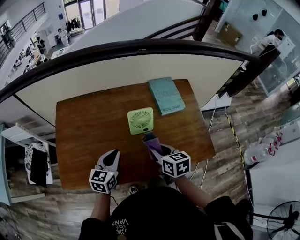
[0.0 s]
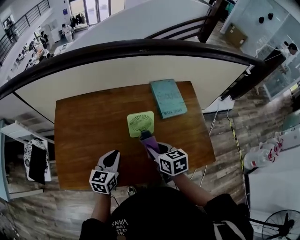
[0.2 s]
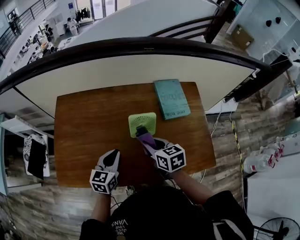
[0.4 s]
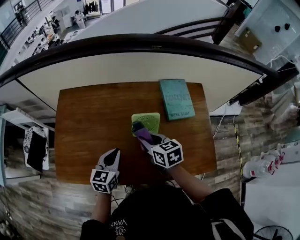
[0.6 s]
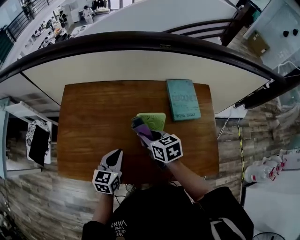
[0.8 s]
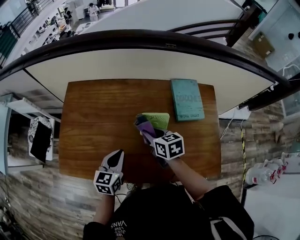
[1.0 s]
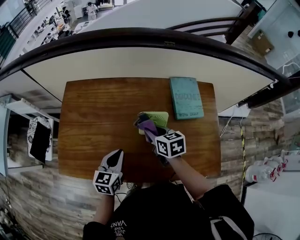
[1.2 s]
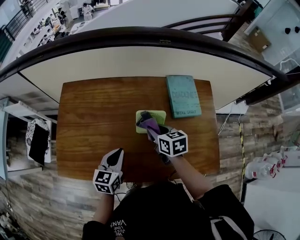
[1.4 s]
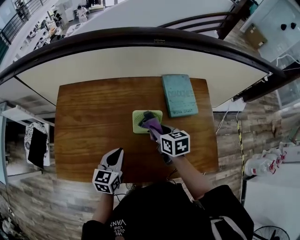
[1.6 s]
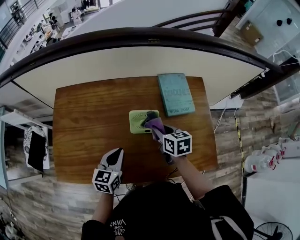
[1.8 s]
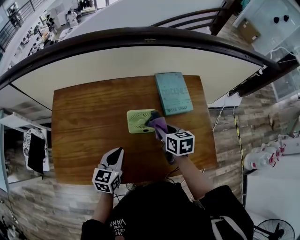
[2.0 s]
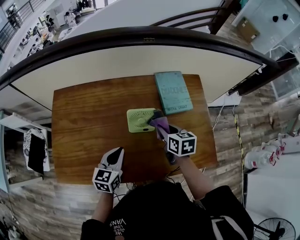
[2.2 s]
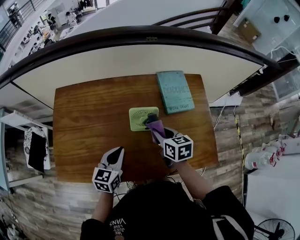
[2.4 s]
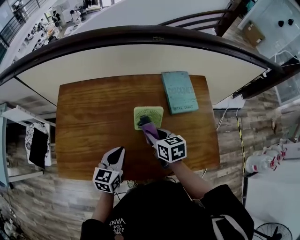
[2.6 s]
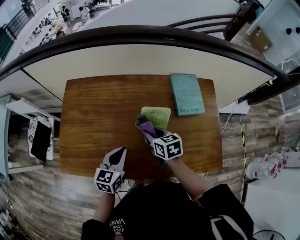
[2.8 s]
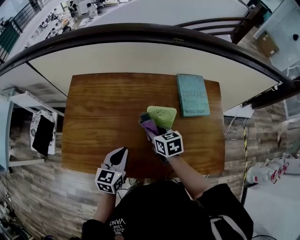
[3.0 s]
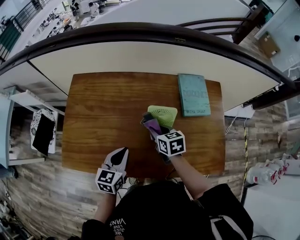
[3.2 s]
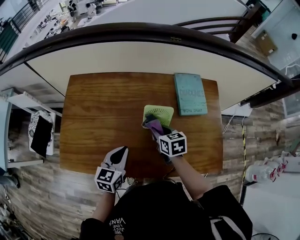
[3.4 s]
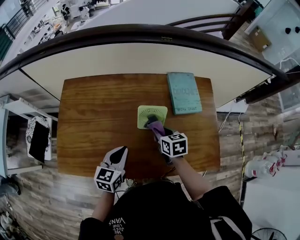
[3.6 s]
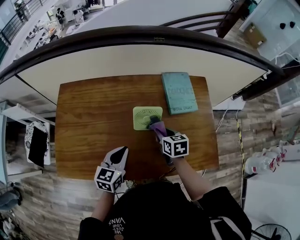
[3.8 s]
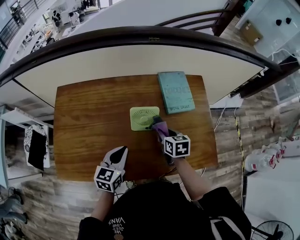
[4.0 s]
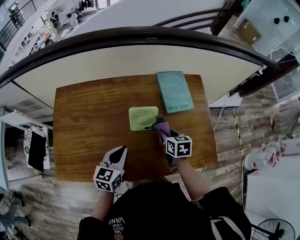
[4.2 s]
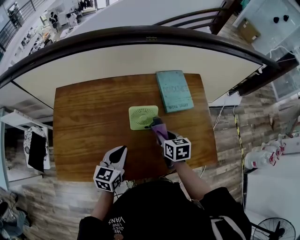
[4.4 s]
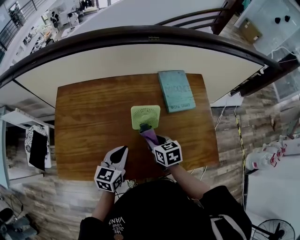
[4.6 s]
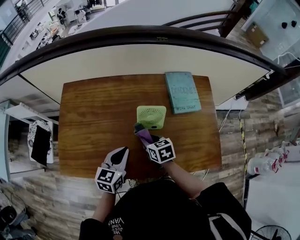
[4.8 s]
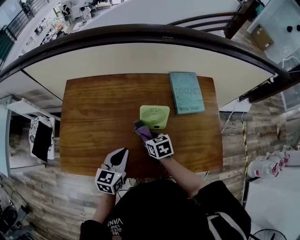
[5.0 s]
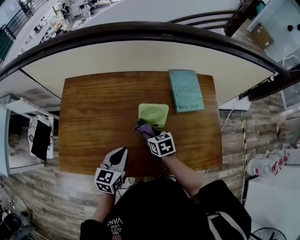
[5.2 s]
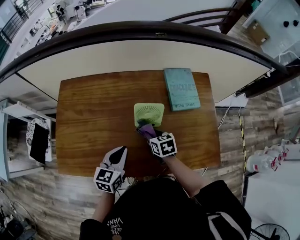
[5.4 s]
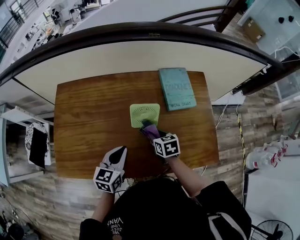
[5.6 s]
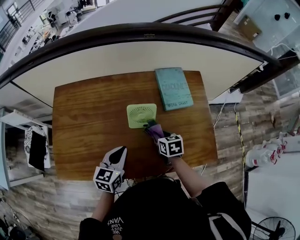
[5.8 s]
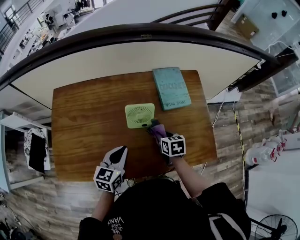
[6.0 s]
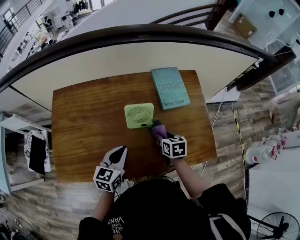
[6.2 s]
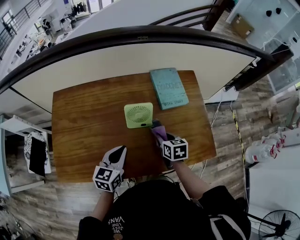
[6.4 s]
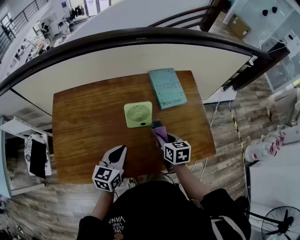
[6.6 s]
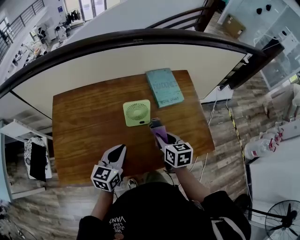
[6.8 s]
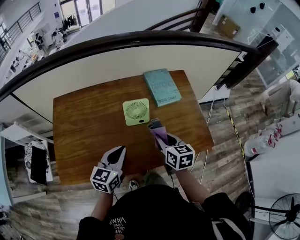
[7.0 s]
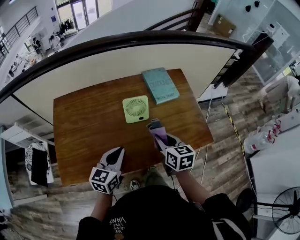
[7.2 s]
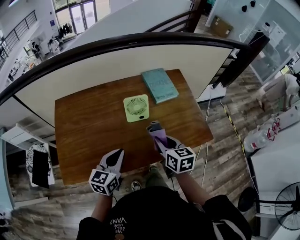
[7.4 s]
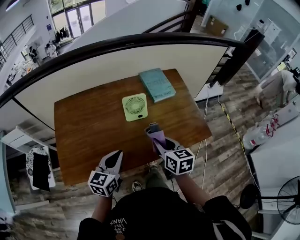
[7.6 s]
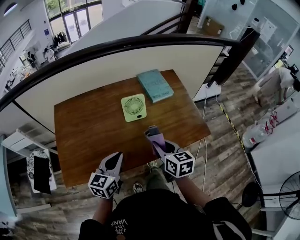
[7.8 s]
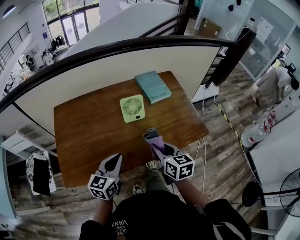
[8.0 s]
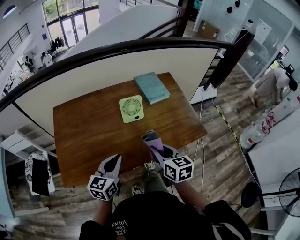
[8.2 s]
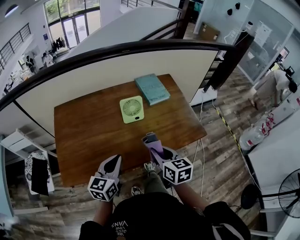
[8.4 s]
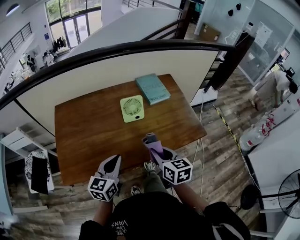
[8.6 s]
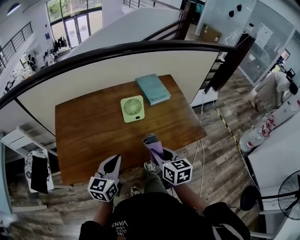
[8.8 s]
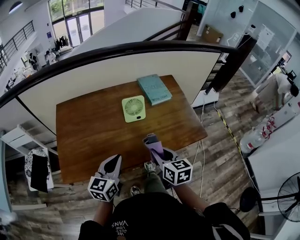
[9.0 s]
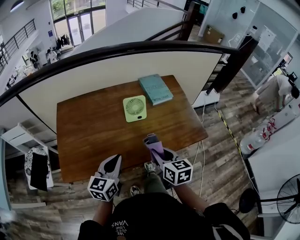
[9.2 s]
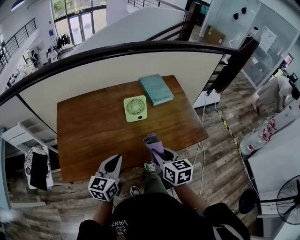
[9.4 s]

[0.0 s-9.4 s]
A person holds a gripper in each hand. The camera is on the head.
0.0 to 1.6 s: The right gripper heads forward, covering about 15 cm.
1.6 to 3.2 s: The right gripper goes approximately 5 cm to the left.
3.2 to 4.8 s: The right gripper moves roughly 15 cm to the right and comes back.
4.8 to 6.2 s: The right gripper is displaced to the right by some 15 cm.
6.2 to 7.8 s: The left gripper shifts approximately 15 cm backward and upward; the right gripper shifts about 20 cm backward and upward, and rotates some 20 degrees.
7.8 to 9.4 s: The grippers make only small movements.

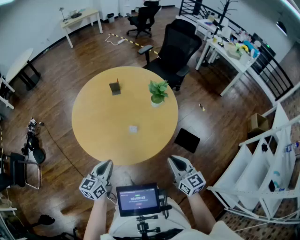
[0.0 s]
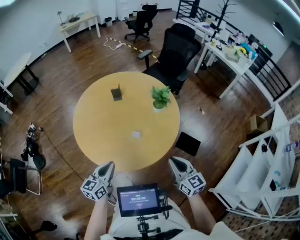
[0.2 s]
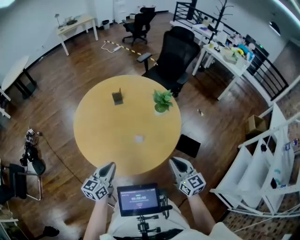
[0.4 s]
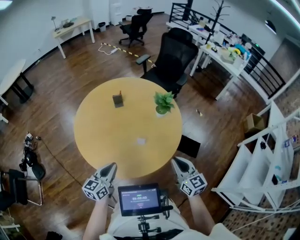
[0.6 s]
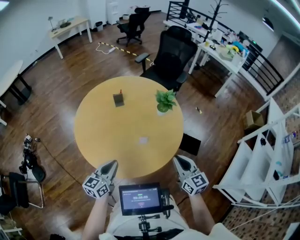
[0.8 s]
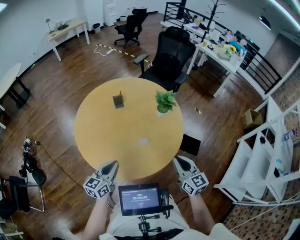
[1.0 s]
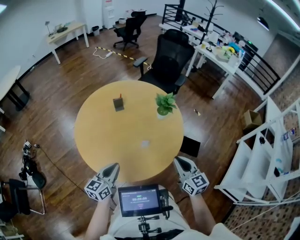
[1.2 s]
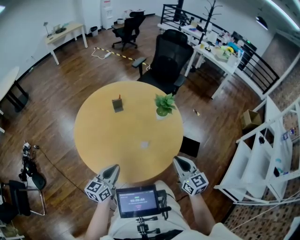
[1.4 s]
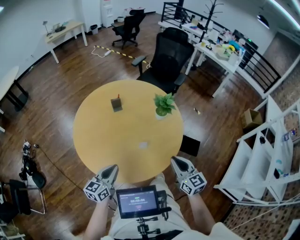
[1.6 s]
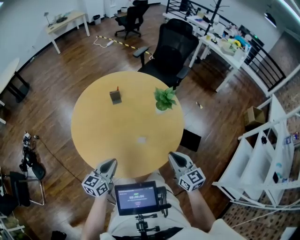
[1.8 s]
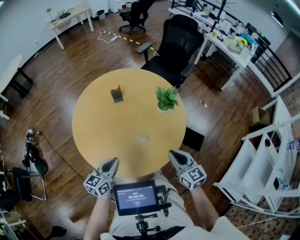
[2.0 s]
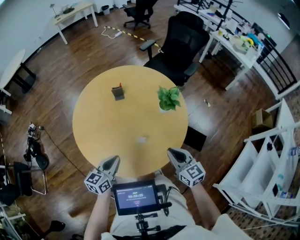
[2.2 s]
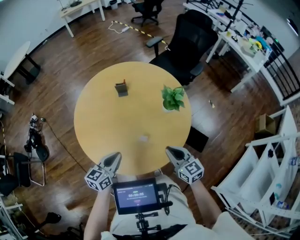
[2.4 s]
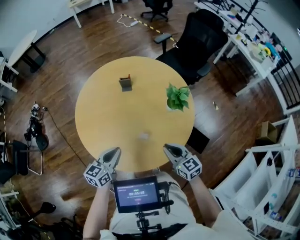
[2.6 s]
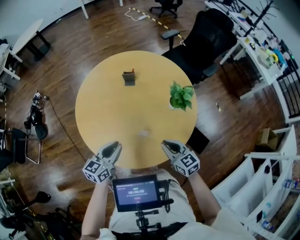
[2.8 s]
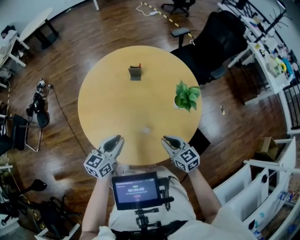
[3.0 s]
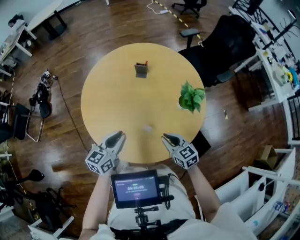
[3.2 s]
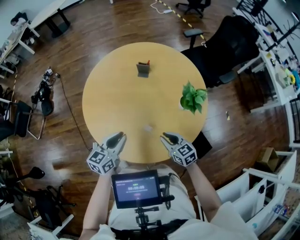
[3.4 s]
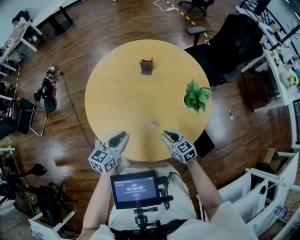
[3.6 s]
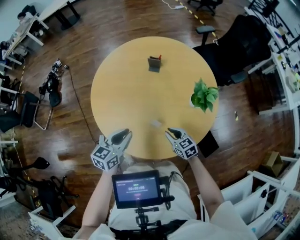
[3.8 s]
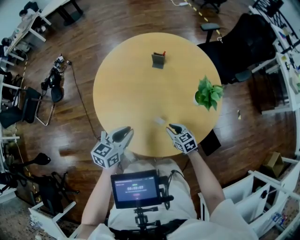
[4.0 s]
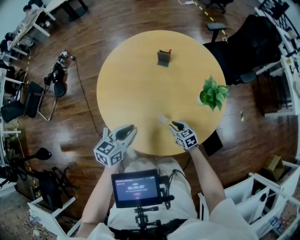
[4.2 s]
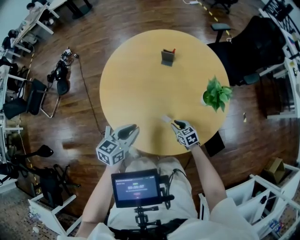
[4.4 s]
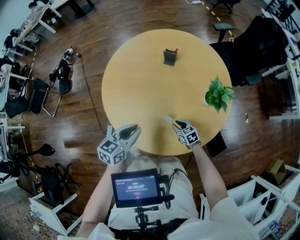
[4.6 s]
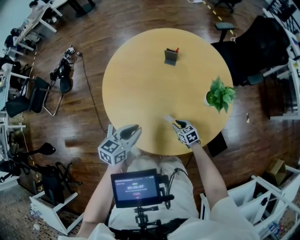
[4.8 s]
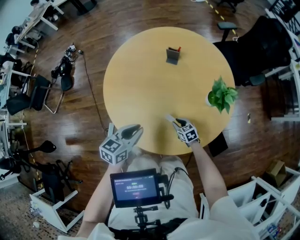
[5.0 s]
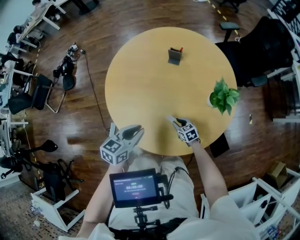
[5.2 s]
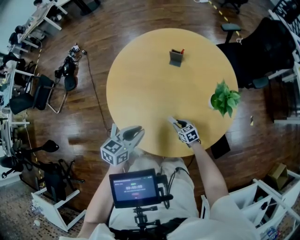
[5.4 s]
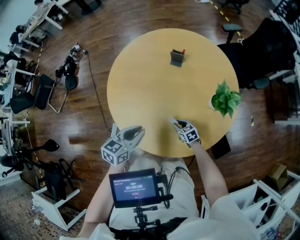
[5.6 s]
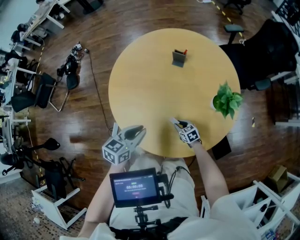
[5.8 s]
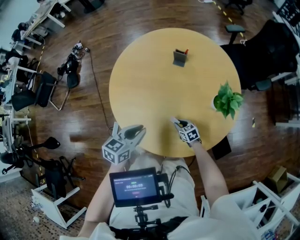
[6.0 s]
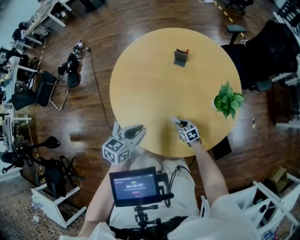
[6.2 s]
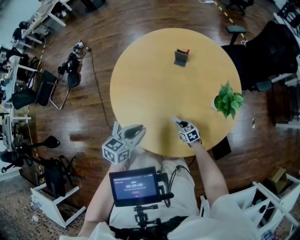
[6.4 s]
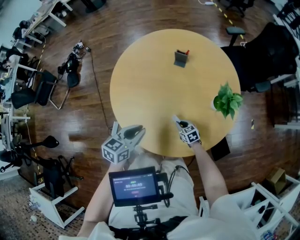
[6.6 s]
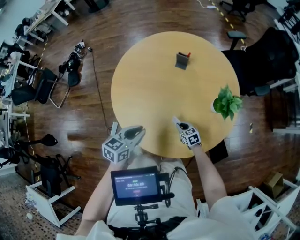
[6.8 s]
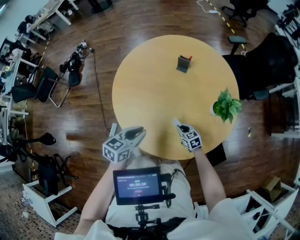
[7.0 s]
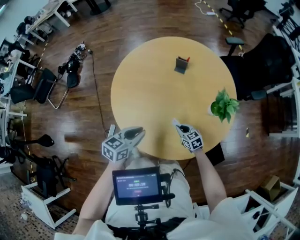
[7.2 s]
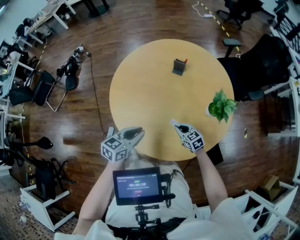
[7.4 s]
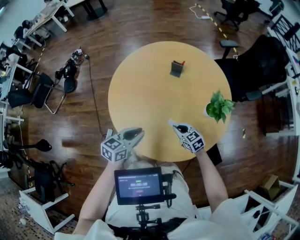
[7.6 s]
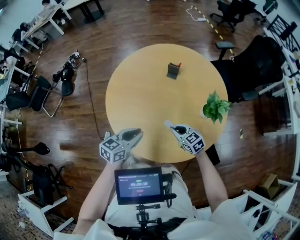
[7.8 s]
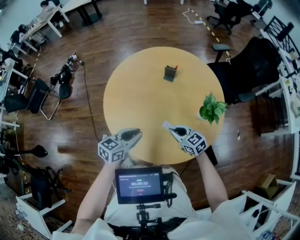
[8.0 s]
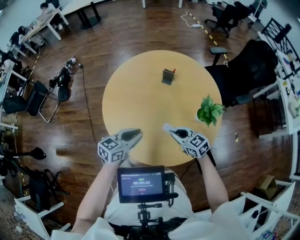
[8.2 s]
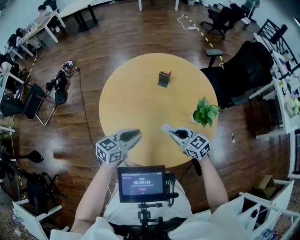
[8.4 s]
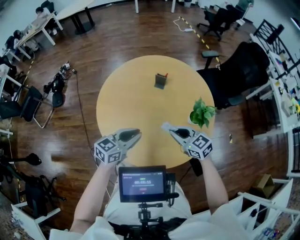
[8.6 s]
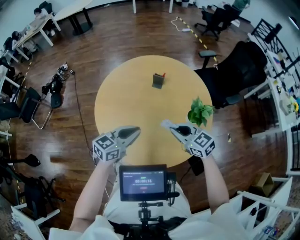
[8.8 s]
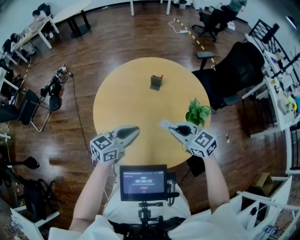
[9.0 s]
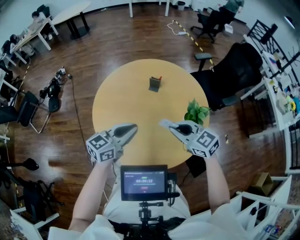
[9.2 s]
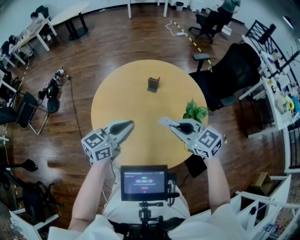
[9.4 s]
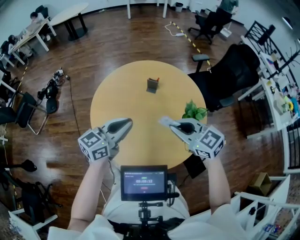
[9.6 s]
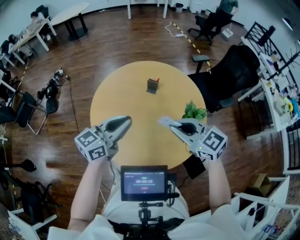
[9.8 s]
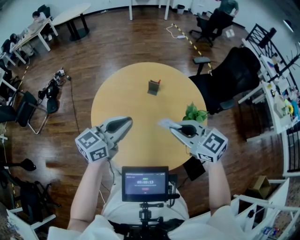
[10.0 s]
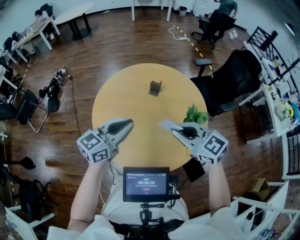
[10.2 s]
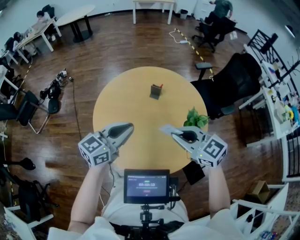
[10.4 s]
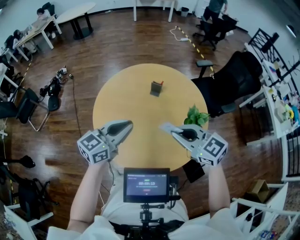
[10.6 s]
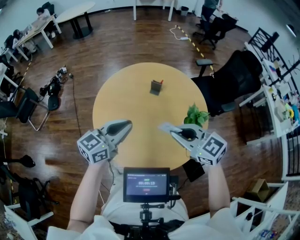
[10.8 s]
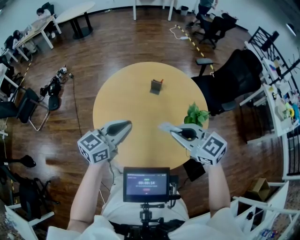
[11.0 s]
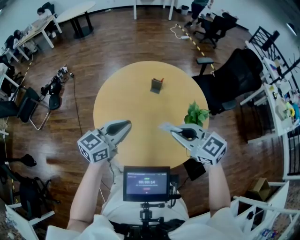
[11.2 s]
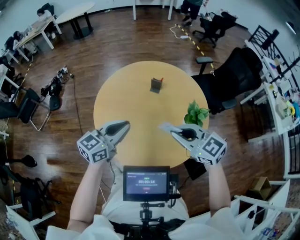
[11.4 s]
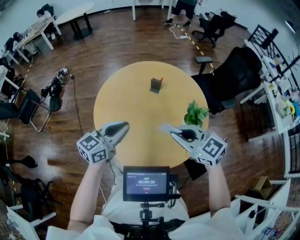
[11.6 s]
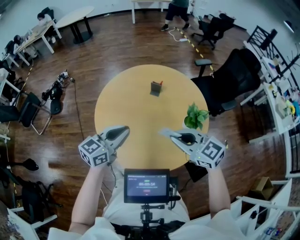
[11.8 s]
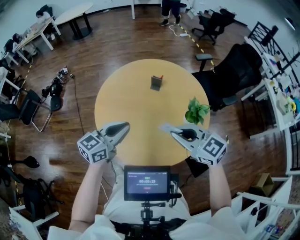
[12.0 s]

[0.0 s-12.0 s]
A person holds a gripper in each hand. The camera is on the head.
0.0 to 1.6 s: The two grippers go about 15 cm to the left and forward.
1.6 to 3.0 s: The right gripper changes place by approximately 20 cm, and turns by some 40 degrees. The left gripper ends up roughly 15 cm from where it was, and rotates roughly 20 degrees.
3.0 to 4.4 s: The right gripper travels downward by roughly 20 cm, and rotates approximately 20 degrees.
4.4 to 6.0 s: The right gripper travels downward by some 5 cm.
6.0 to 7.6 s: The right gripper travels upward by approximately 15 cm.
7.6 to 9.0 s: The left gripper travels upward and to the right by about 15 cm. Meanwhile the right gripper travels upward by some 25 cm.
9.0 to 10.4 s: Both grippers travel together upward, approximately 10 cm.
10.4 to 12.0 s: The grippers make only small movements.

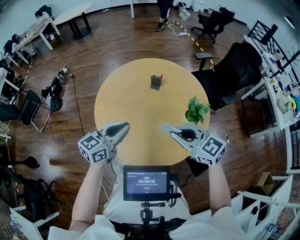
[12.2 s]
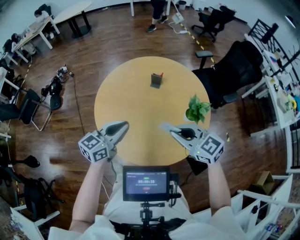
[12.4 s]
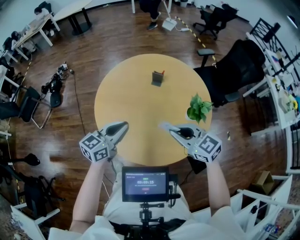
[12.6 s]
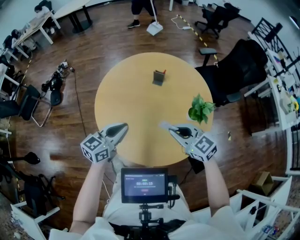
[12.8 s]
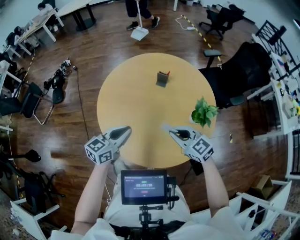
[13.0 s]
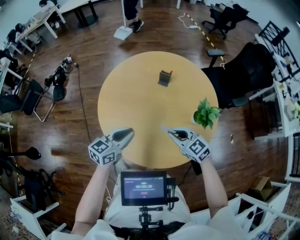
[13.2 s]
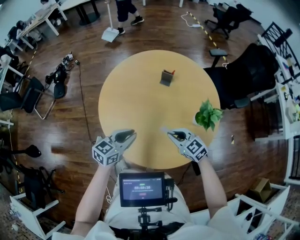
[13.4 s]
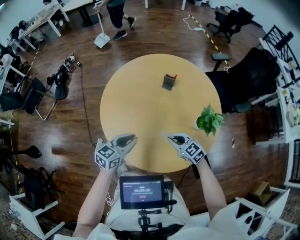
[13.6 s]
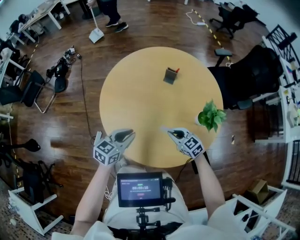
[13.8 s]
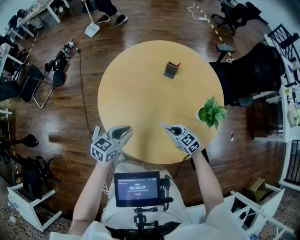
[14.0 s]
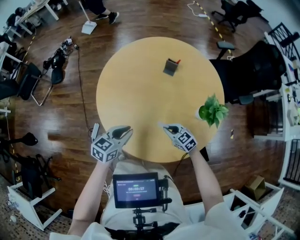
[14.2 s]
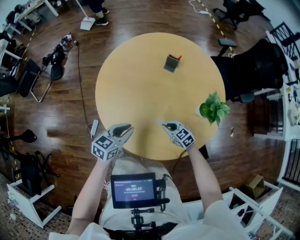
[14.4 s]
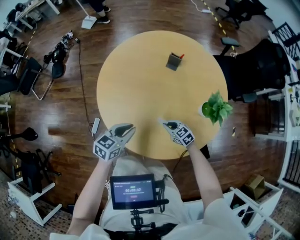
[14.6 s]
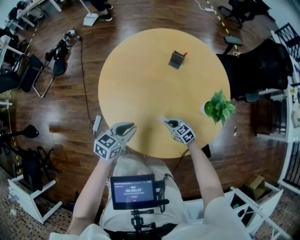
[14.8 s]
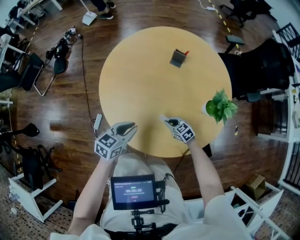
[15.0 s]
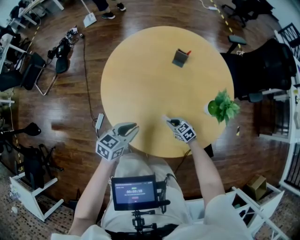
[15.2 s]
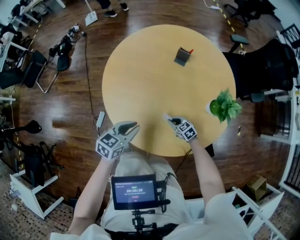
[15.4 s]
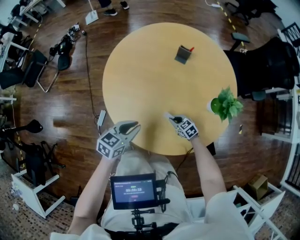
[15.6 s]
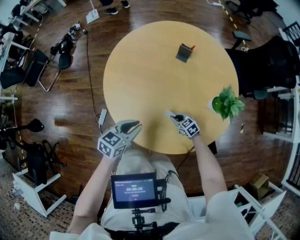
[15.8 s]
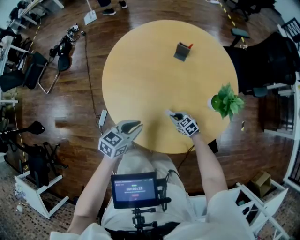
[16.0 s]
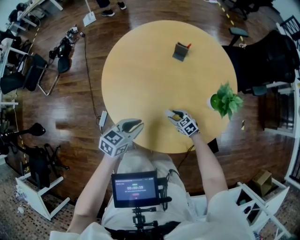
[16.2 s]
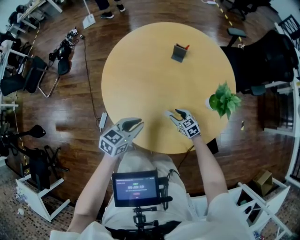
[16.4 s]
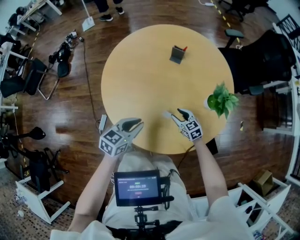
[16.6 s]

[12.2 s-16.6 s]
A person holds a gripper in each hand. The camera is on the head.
12.2 to 13.6 s: The left gripper travels downward by some 15 cm; the right gripper is displaced downward by roughly 25 cm.
13.6 to 15.2 s: The right gripper moves downward, some 20 cm. Meanwhile the left gripper goes roughly 5 cm downward.
15.2 to 16.6 s: The right gripper heads upward, covering roughly 5 cm, and opens up.
